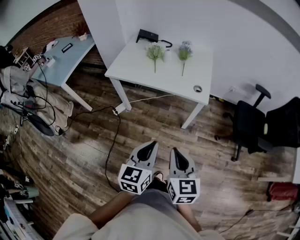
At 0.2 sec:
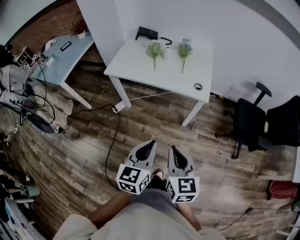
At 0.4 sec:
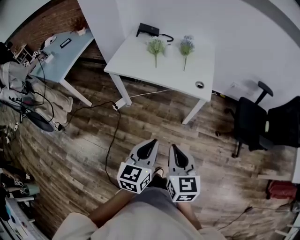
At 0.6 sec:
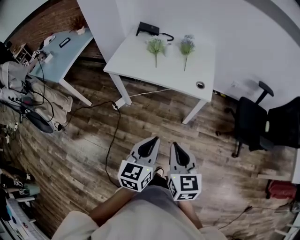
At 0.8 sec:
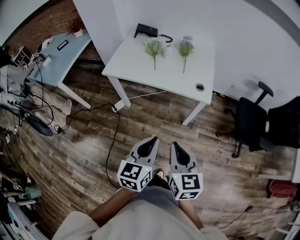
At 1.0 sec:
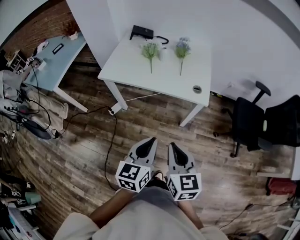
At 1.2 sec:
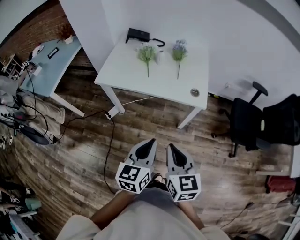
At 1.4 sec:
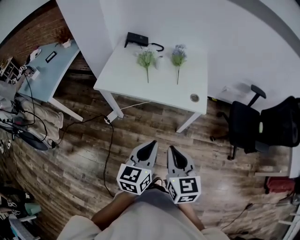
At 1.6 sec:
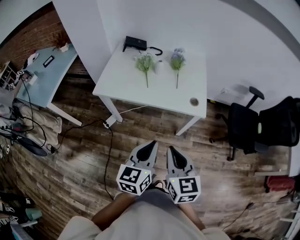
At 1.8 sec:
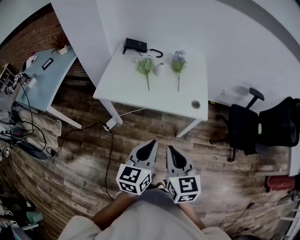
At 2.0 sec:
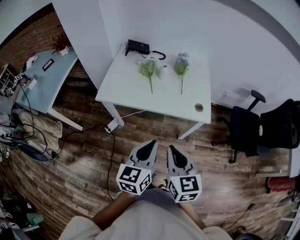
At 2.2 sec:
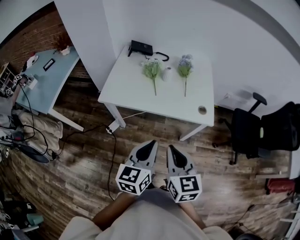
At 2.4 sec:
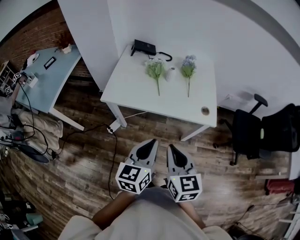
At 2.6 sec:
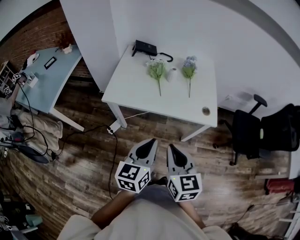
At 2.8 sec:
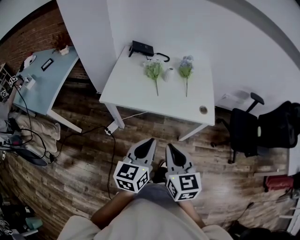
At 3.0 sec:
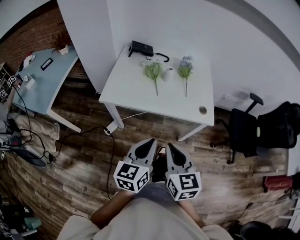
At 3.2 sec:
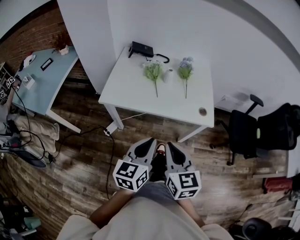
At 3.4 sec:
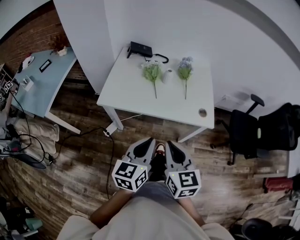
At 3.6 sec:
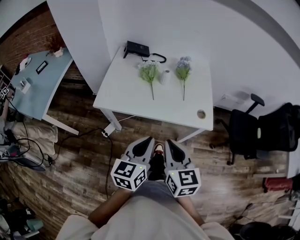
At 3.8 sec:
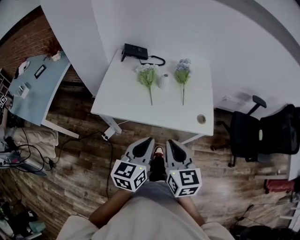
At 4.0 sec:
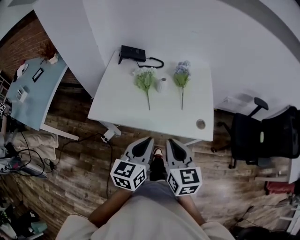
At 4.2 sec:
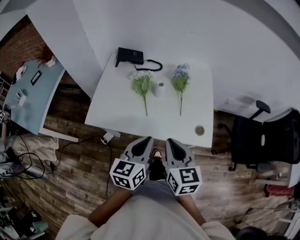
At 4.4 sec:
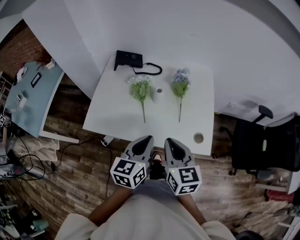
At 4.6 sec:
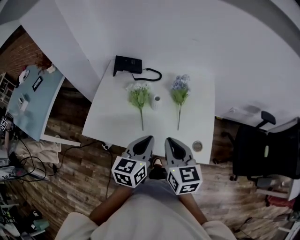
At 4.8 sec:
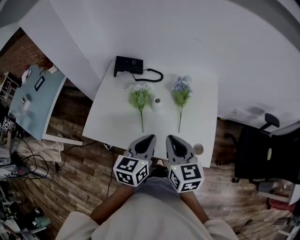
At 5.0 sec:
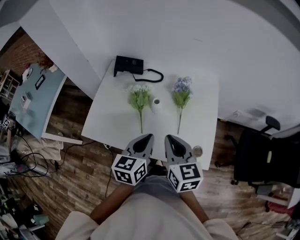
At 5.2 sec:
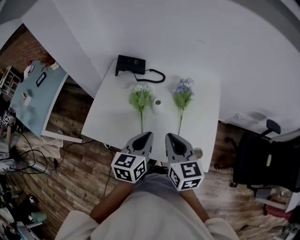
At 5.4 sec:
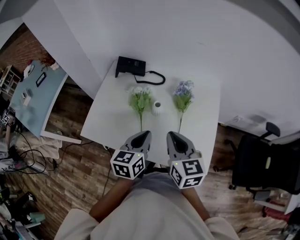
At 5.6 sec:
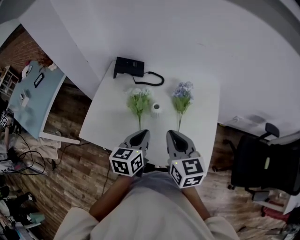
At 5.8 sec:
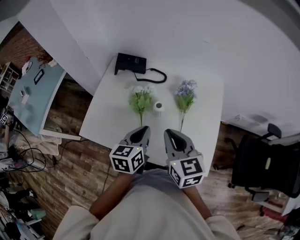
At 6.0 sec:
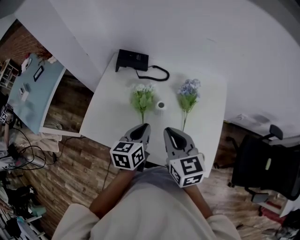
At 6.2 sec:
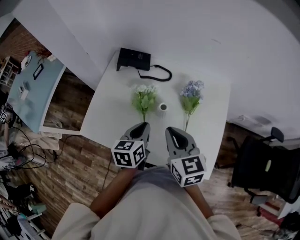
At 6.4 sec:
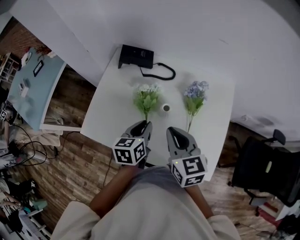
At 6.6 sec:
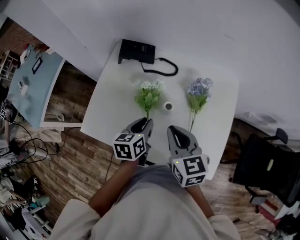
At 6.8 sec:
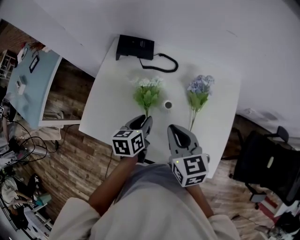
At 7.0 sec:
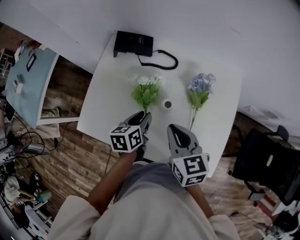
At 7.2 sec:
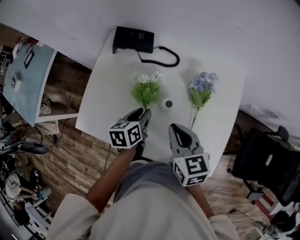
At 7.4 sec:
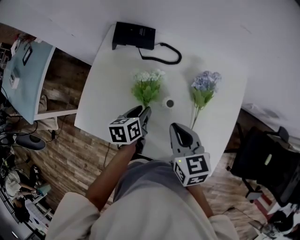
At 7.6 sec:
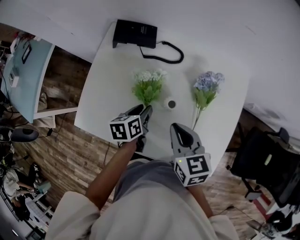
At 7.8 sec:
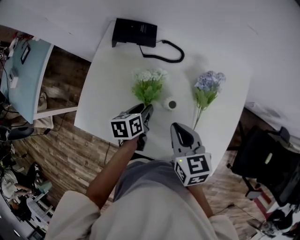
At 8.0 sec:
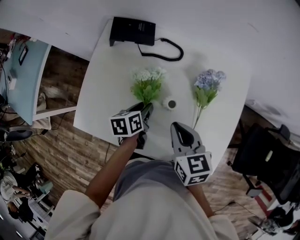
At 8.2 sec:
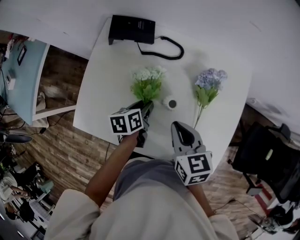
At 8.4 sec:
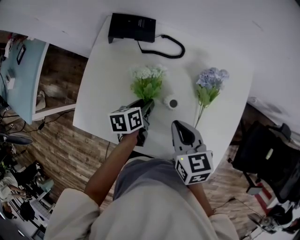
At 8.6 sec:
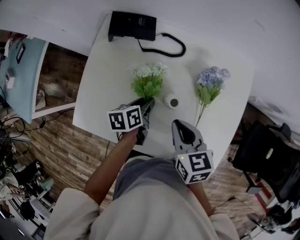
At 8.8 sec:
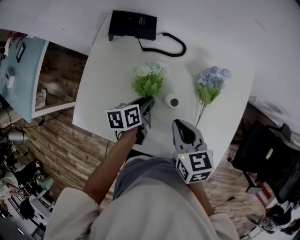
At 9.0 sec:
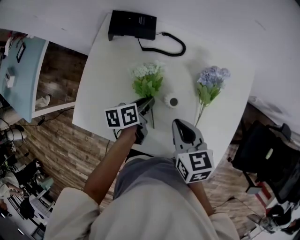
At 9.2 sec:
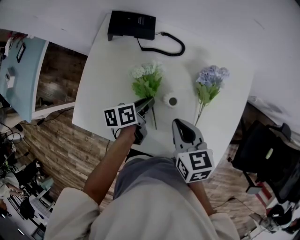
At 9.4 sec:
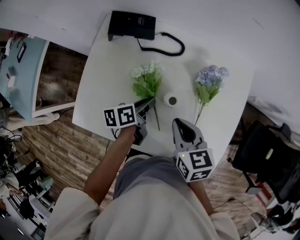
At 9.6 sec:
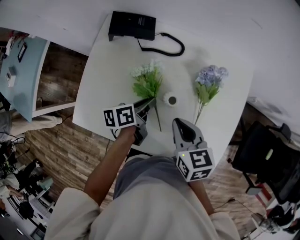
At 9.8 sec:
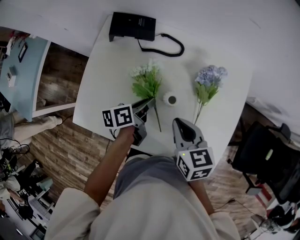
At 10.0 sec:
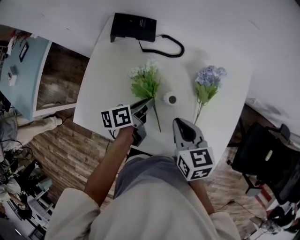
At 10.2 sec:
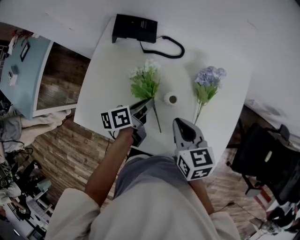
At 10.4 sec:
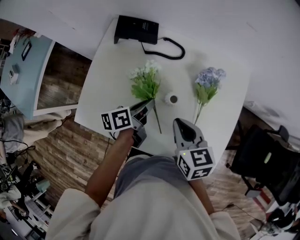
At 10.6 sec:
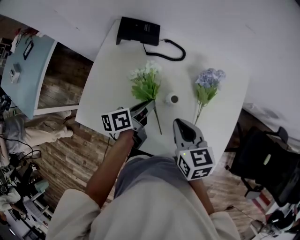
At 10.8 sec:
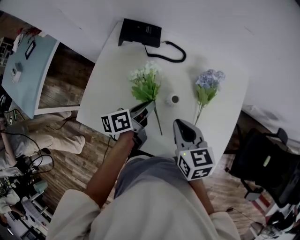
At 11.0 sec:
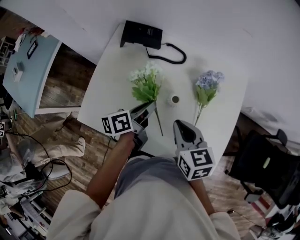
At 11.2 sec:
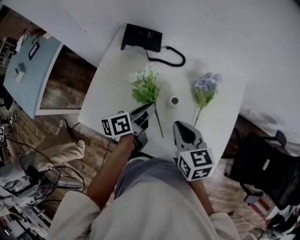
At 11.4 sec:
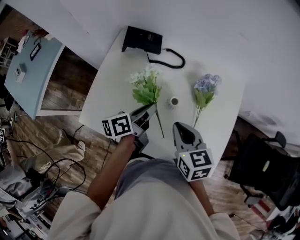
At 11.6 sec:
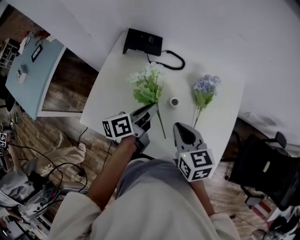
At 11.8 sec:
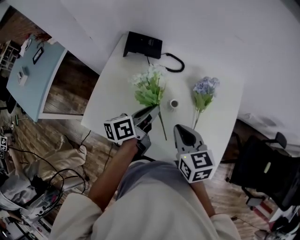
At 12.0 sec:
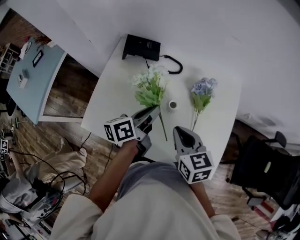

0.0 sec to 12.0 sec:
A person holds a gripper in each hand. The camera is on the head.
0.0 sec to 1.6 sec: The left gripper goes roughly 15 cm forward, while the right gripper travels forward and to the left by about 15 cm.
1.6 sec to 3.0 sec: Both grippers move to the left, about 10 cm.
3.0 sec to 4.4 sec: The grippers both shift forward by about 25 cm.
4.4 sec to 6.0 sec: The right gripper moves forward, about 15 cm. Meanwhile the left gripper travels forward and downward by some 15 cm.
6.0 sec to 7.6 sec: The left gripper is displaced downward and forward by roughly 15 cm, turns by about 30 degrees, and opens its fingers. The right gripper goes some 10 cm downward and forward.
7.6 sec to 9.0 sec: The grippers stay close to where they were, moving slightly.
9.0 sec to 10.4 sec: The left gripper shifts some 5 cm upward.
10.4 sec to 12.0 sec: The left gripper moves upward, approximately 10 cm.

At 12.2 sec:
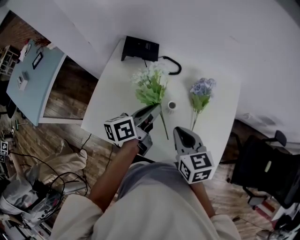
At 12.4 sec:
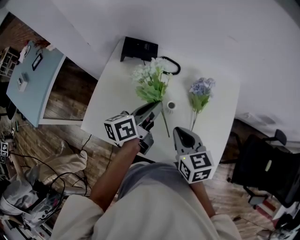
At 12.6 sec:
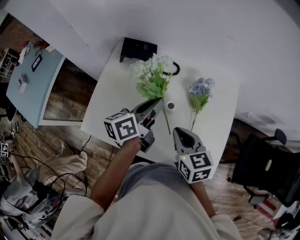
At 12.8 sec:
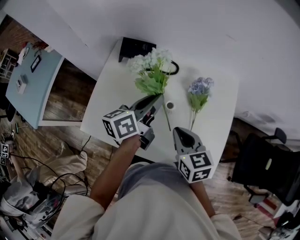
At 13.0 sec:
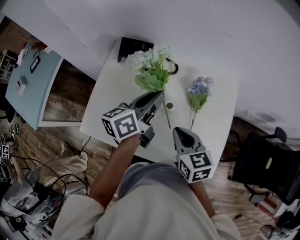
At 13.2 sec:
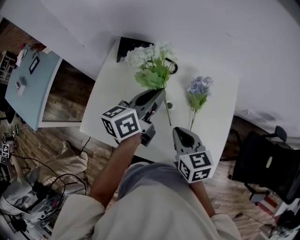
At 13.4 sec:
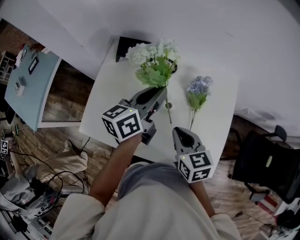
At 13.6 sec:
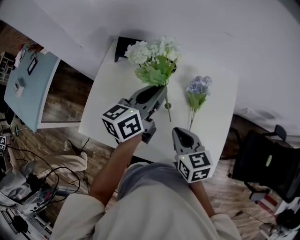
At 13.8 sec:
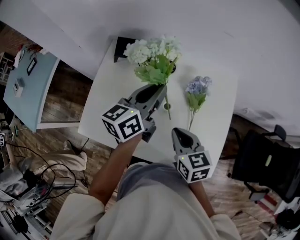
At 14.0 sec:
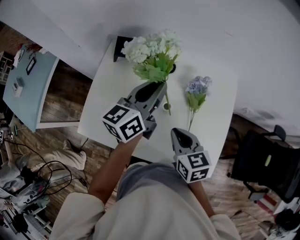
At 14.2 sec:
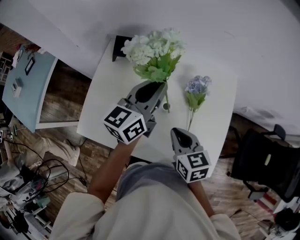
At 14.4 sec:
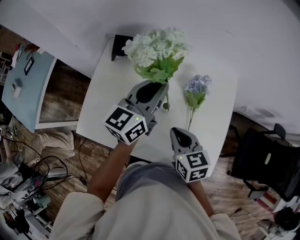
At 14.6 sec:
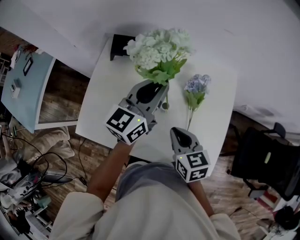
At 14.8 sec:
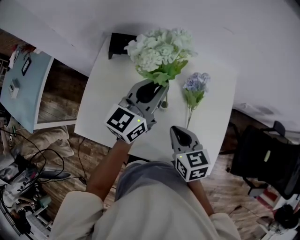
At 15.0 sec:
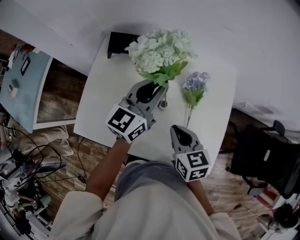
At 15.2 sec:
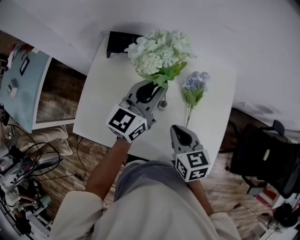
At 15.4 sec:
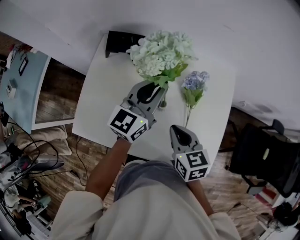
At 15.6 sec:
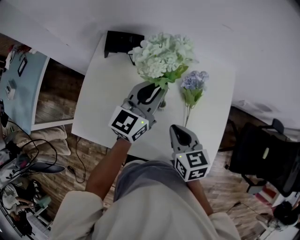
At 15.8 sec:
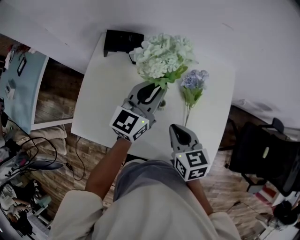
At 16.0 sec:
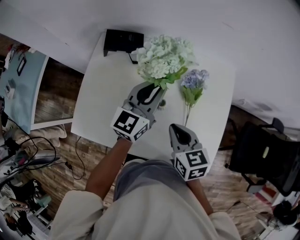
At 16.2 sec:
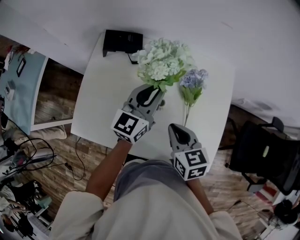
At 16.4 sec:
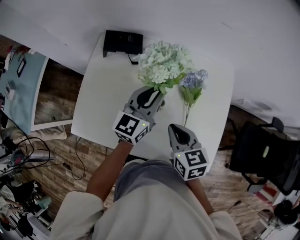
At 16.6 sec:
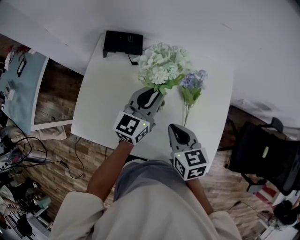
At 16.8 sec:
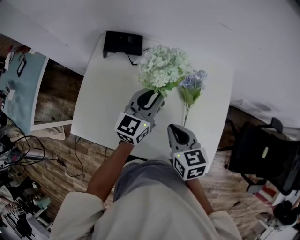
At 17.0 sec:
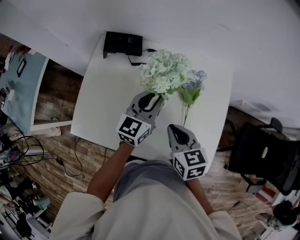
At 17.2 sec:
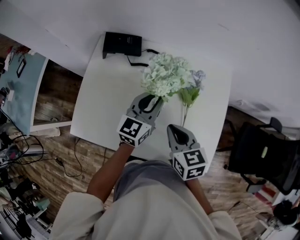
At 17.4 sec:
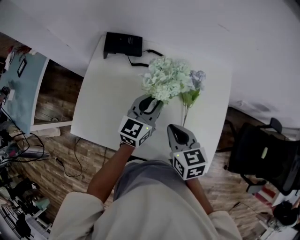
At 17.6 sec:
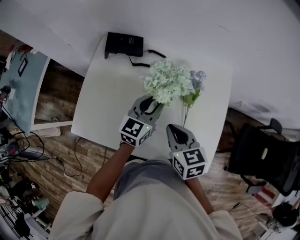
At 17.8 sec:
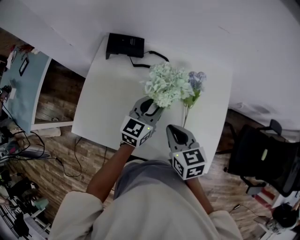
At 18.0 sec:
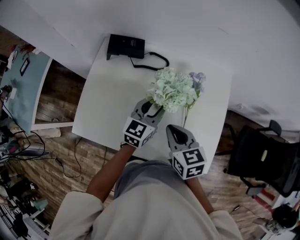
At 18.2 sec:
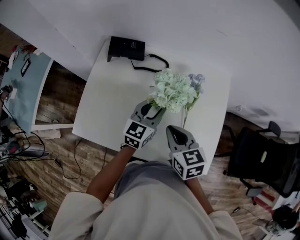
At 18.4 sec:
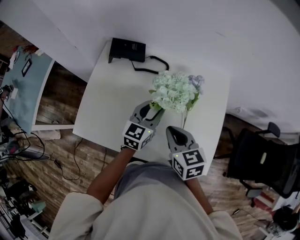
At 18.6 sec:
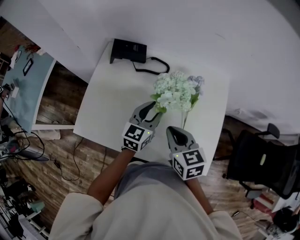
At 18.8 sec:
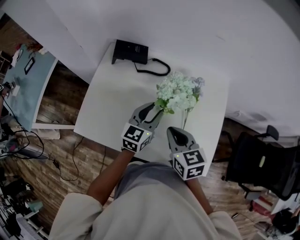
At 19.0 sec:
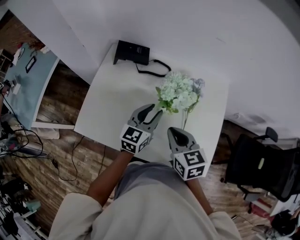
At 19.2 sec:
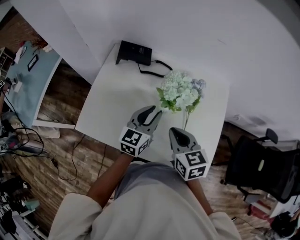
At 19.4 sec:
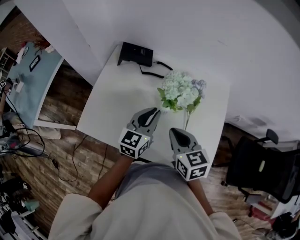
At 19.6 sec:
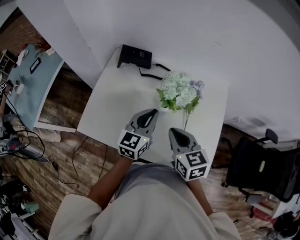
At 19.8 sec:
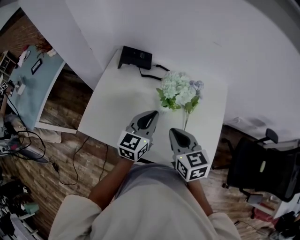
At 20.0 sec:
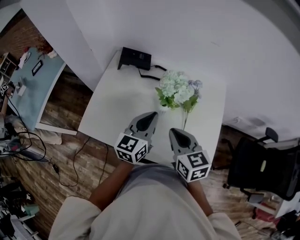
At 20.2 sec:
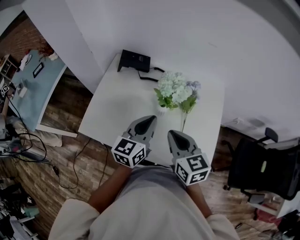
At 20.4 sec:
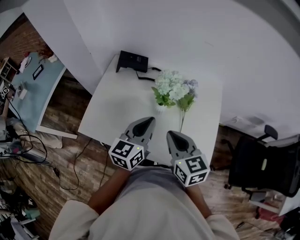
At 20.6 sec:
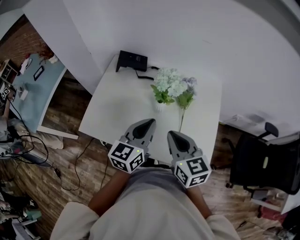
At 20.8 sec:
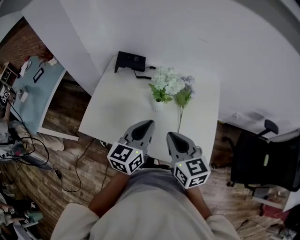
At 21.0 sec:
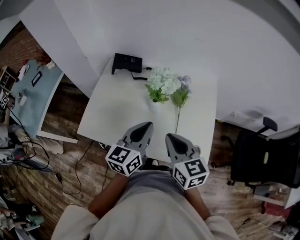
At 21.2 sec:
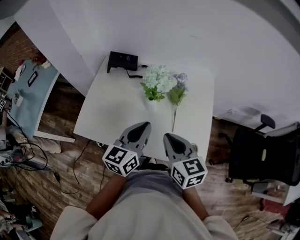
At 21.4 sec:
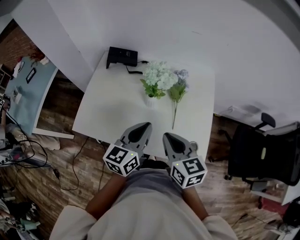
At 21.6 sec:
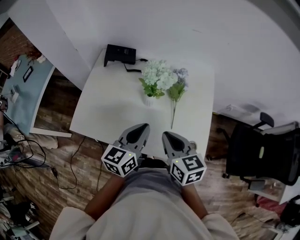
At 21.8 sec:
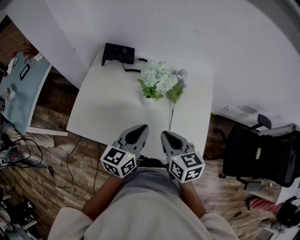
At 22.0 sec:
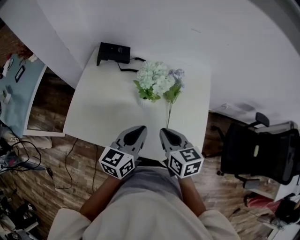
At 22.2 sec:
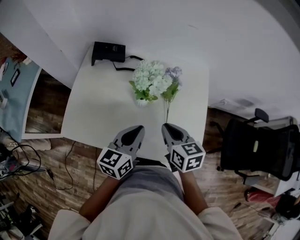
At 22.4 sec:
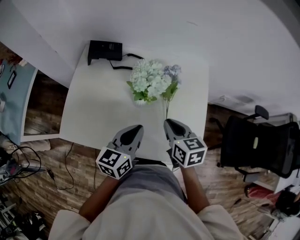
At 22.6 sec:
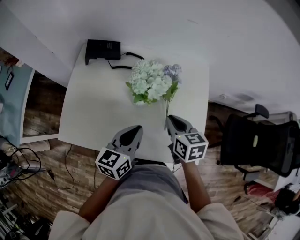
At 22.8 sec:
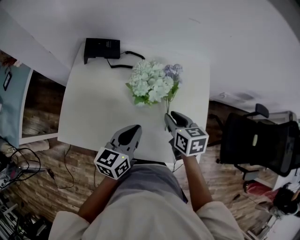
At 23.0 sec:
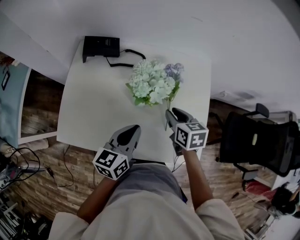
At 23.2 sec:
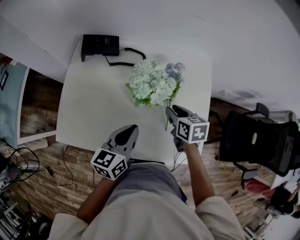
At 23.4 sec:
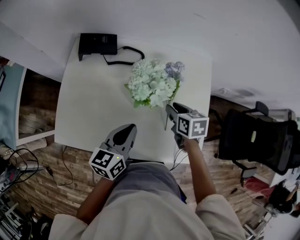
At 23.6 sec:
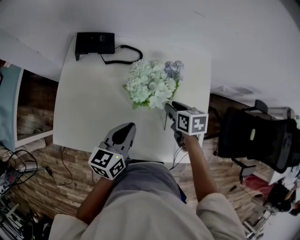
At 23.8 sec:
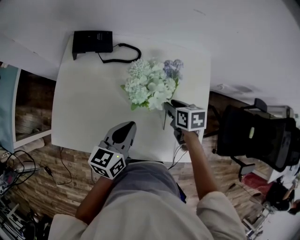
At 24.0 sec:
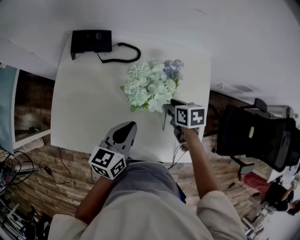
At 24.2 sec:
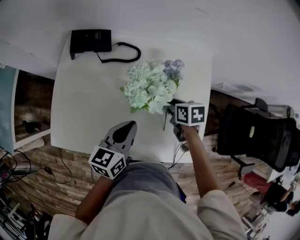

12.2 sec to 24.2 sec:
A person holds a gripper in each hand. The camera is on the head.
12.2 sec to 13.8 sec: The left gripper is displaced upward and forward by roughly 10 cm, and swivels roughly 20 degrees.
13.8 sec to 15.2 sec: The left gripper turns by some 20 degrees.
15.2 sec to 16.6 sec: The left gripper is displaced downward by some 5 cm.
16.6 sec to 18.2 sec: The left gripper moves downward, approximately 5 cm.
18.2 sec to 19.8 sec: The left gripper moves backward and upward, some 10 cm, and closes.
19.8 sec to 21.2 sec: The two grippers go about 10 cm backward.
21.2 sec to 22.6 sec: The right gripper moves forward and downward, some 15 cm; the left gripper travels downward by approximately 5 cm.
22.6 sec to 24.2 sec: The right gripper heads downward and forward, covering some 15 cm, rotates about 20 degrees, and opens. The left gripper moves approximately 5 cm.
